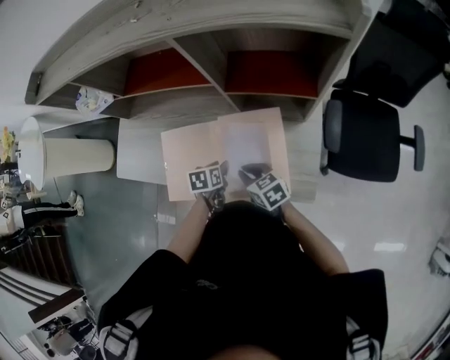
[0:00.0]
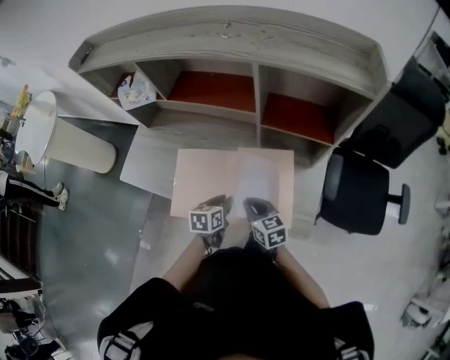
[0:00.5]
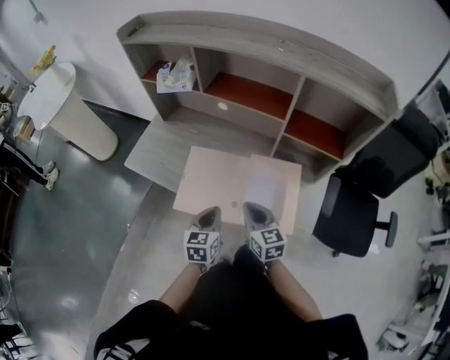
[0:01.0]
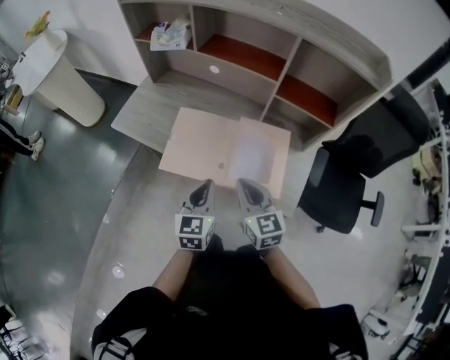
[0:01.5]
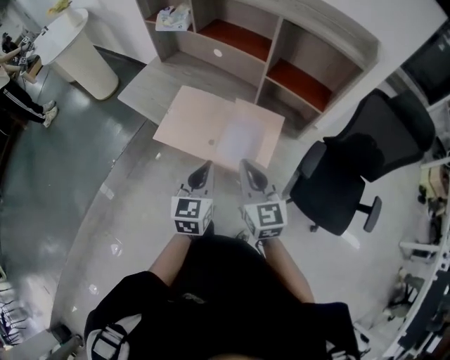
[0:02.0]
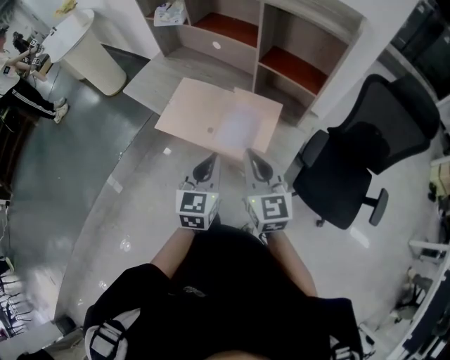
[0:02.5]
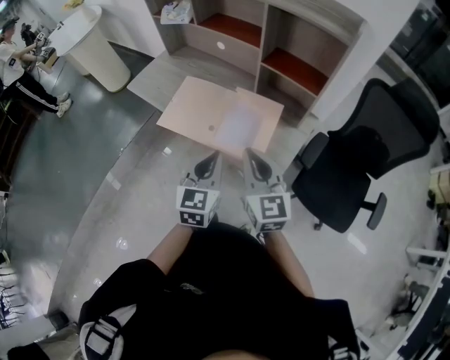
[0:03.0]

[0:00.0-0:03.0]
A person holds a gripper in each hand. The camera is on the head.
0:00.0 to 0:01.5: Both grippers travel together upward and backward, some 20 cm. The left gripper angles its fingers upward, by approximately 40 degrees, and closes its fingers. The right gripper rotates about 30 degrees.
0:01.5 to 0:03.0: Both grippers travel together to the right, backward and upward, approximately 15 cm.

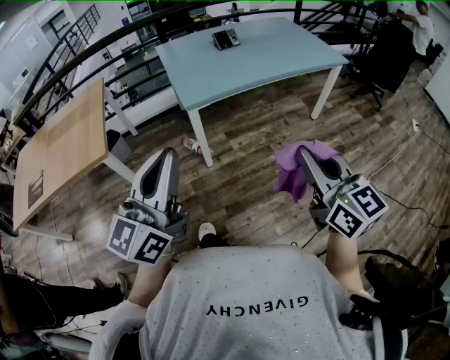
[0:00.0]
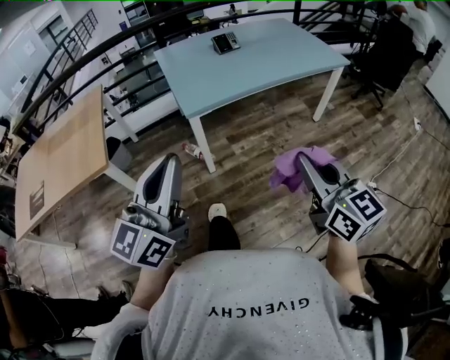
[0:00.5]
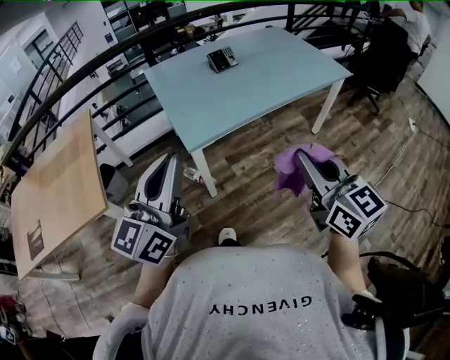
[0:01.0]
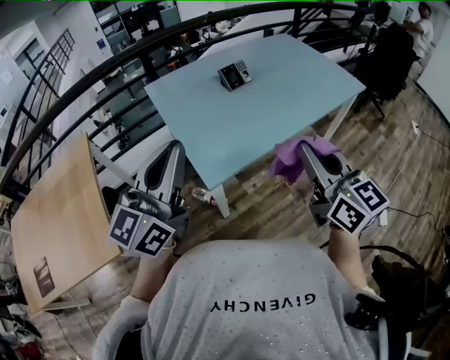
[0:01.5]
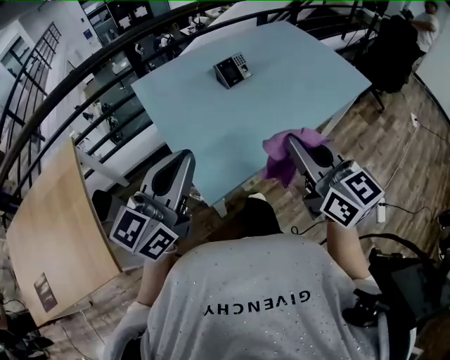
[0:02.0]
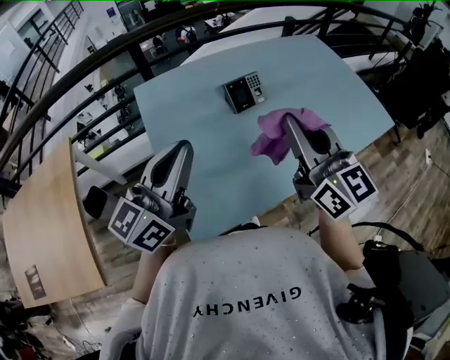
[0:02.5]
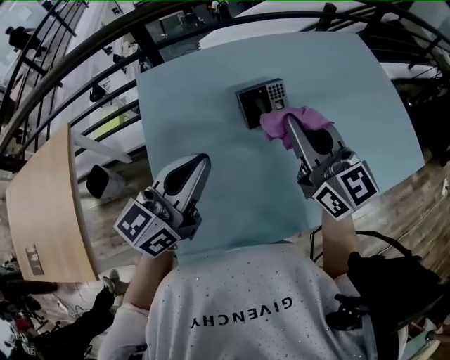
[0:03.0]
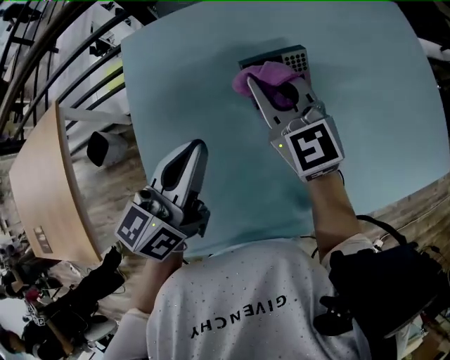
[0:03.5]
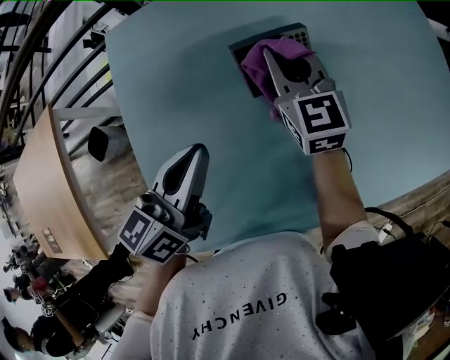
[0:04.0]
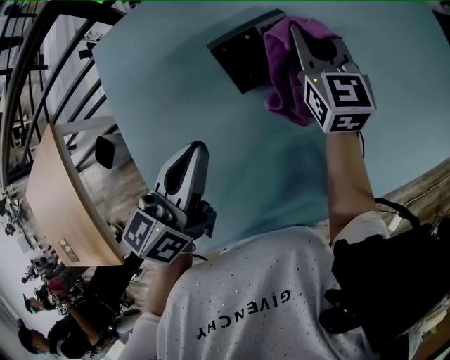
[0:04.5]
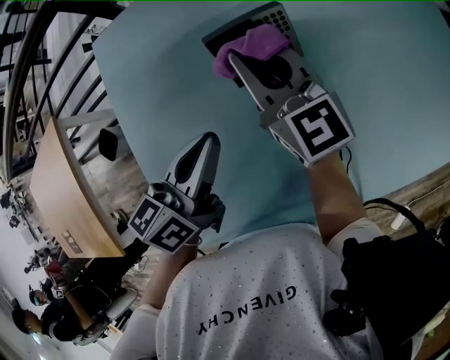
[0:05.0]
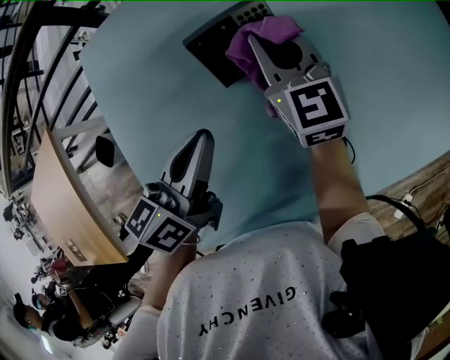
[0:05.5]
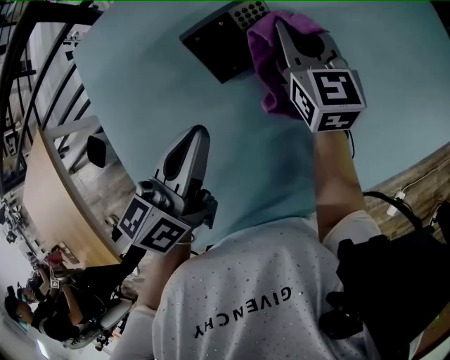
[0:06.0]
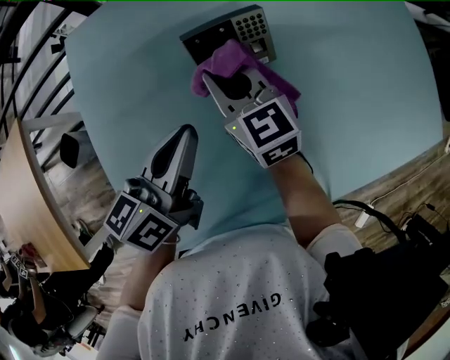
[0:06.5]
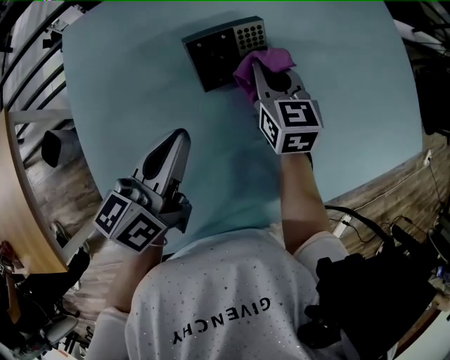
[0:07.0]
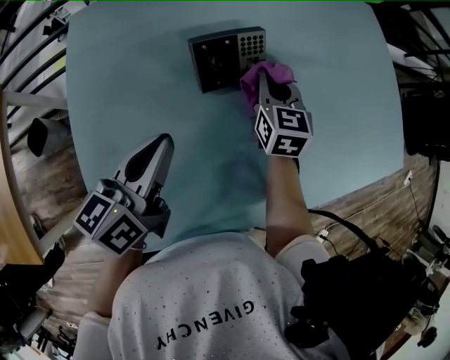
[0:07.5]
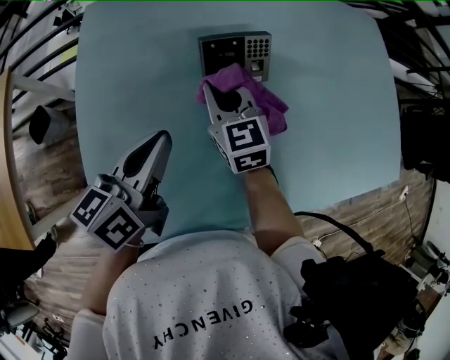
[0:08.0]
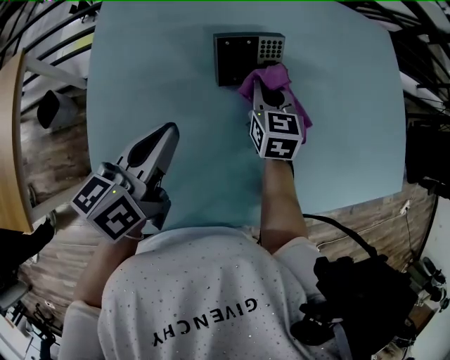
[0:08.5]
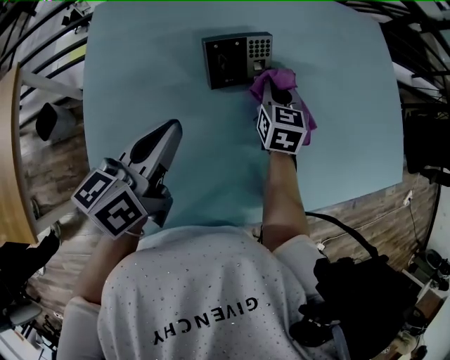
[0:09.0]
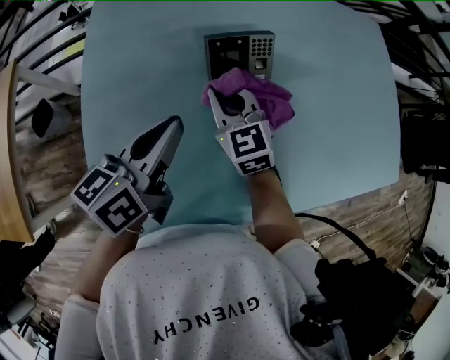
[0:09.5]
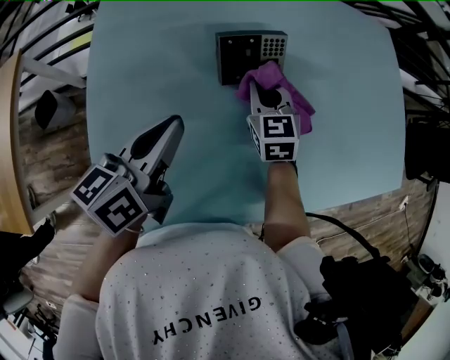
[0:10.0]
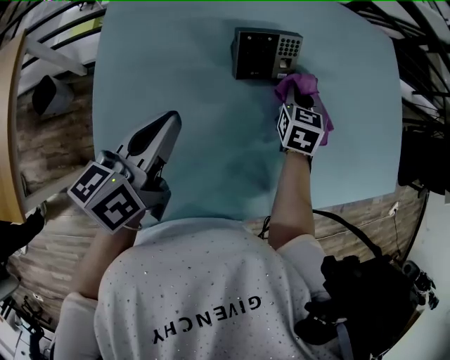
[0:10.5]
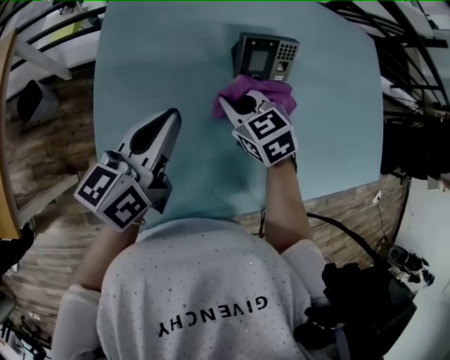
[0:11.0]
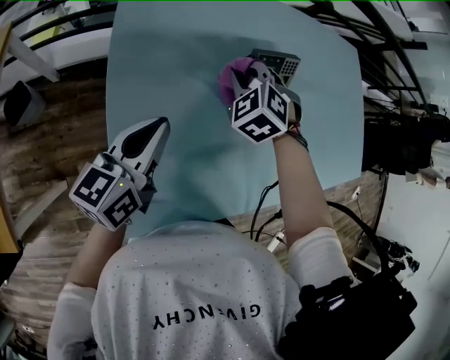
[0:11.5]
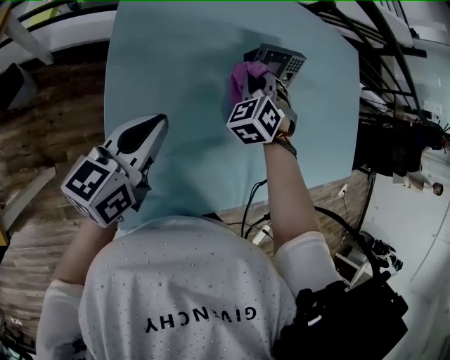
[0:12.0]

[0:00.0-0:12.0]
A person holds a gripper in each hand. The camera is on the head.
0:00.0 to 0:02.0: The two grippers travel together, forward, roughly 50 cm.
0:02.0 to 0:04.0: Both grippers are carried forward, roughly 50 cm. Both grippers travel together downward, approximately 25 cm. The left gripper turns by roughly 40 degrees.
0:04.0 to 0:06.0: The right gripper goes left and right, approximately 10 cm each way, reversing 2 times; the left gripper moves to the right, roughly 5 cm.
0:06.0 to 0:08.0: The right gripper swings left and right, about 15 cm each way, with 2 reversals, and rotates roughly 30 degrees. The left gripper moves about 5 cm.
0:08.0 to 0:10.0: The right gripper moves left and right over approximately 15 cm, changing direction 2 times.
0:10.0 to 0:12.0: The left gripper moves some 15 cm, while the right gripper changes place by about 10 cm, and twists approximately 50 degrees counterclockwise, seen from behind.

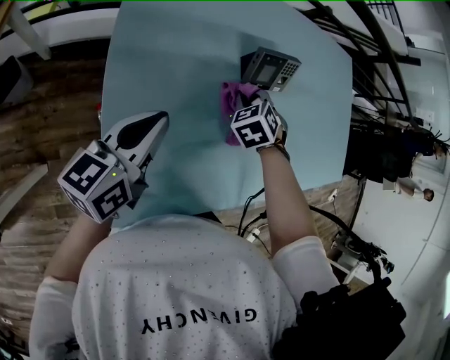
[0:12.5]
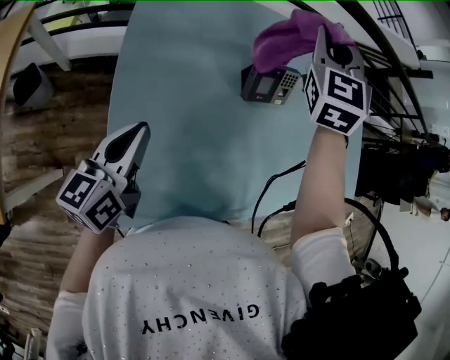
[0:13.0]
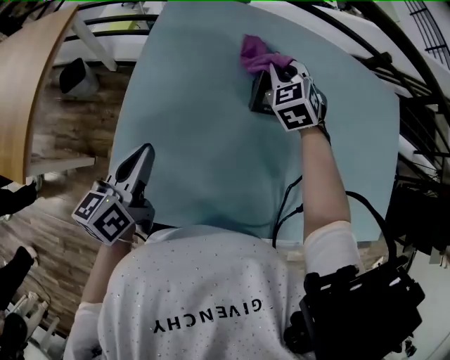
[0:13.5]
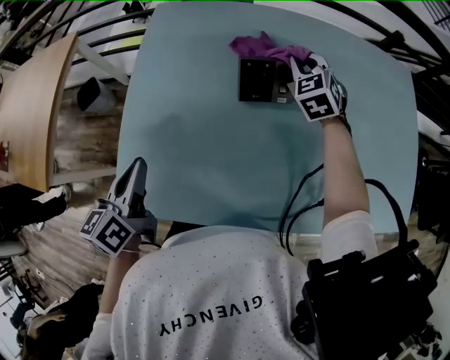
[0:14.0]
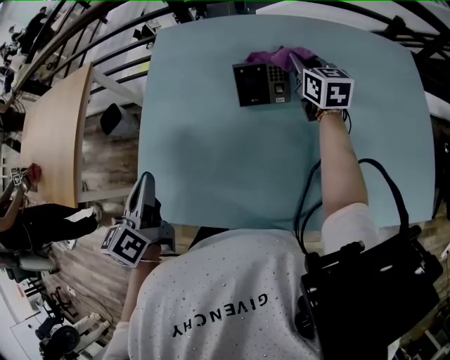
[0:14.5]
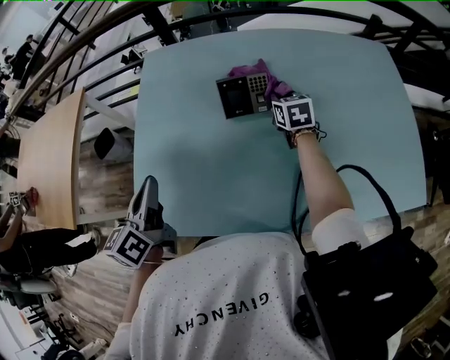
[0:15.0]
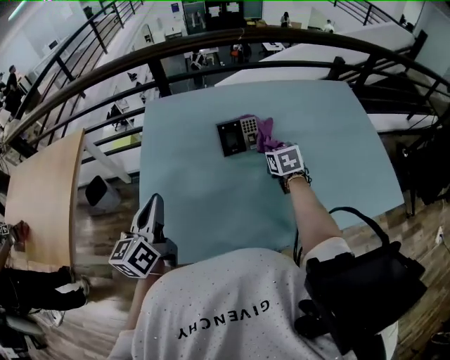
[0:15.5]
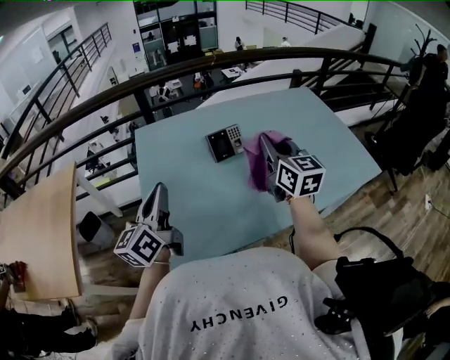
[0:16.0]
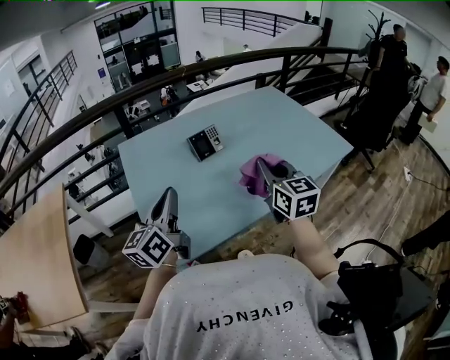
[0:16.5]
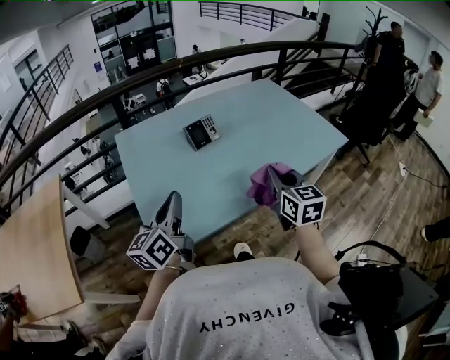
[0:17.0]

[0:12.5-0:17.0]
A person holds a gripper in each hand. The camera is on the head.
0:12.5 to 0:14.5: The right gripper ends up roughly 30 cm from where it was, and tips its fingers upward by approximately 40 degrees, while the left gripper moves roughly 20 cm, and swivels about 40 degrees.
0:14.5 to 0:17.0: The left gripper shifts by some 15 cm, and rotates approximately 40 degrees. Meanwhile the right gripper goes up and down, roughly 25 cm each way, reversing 2 times, and rotates approximately 30 degrees.

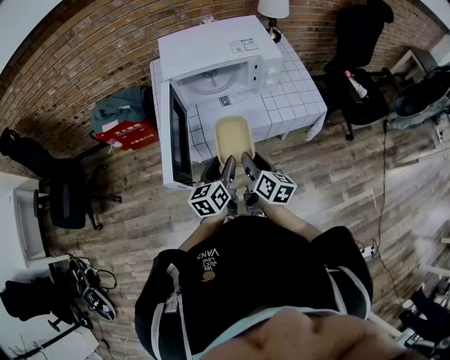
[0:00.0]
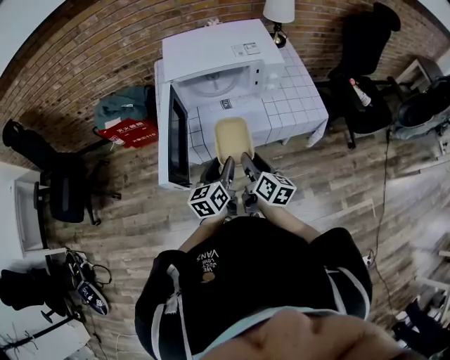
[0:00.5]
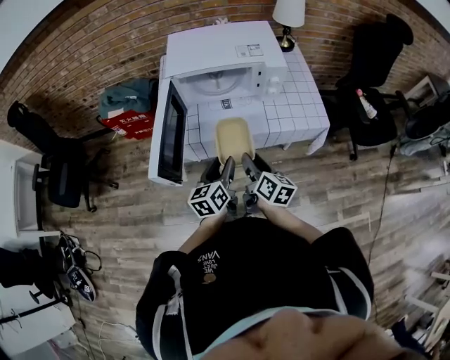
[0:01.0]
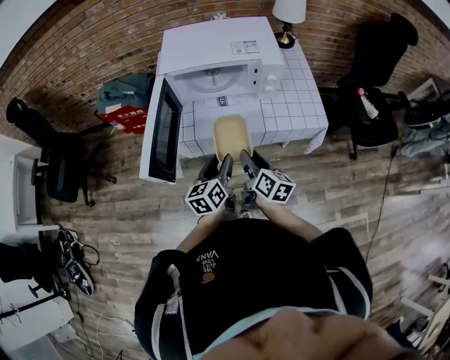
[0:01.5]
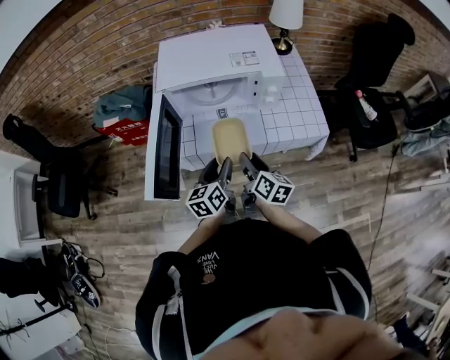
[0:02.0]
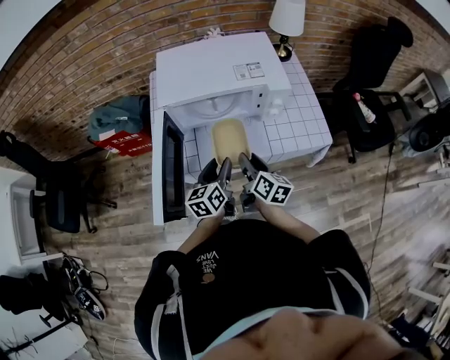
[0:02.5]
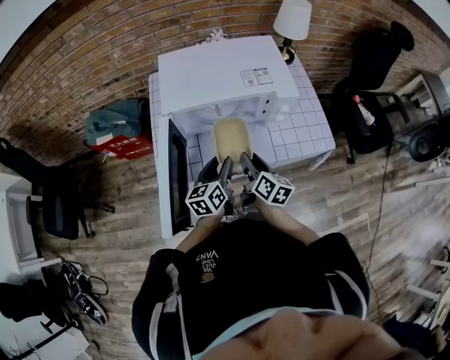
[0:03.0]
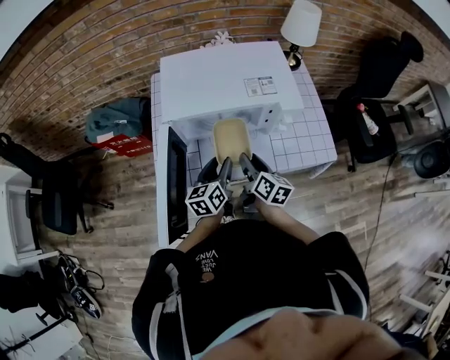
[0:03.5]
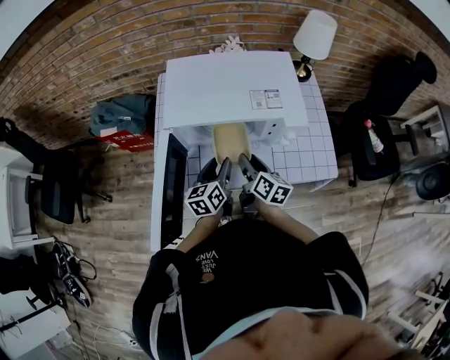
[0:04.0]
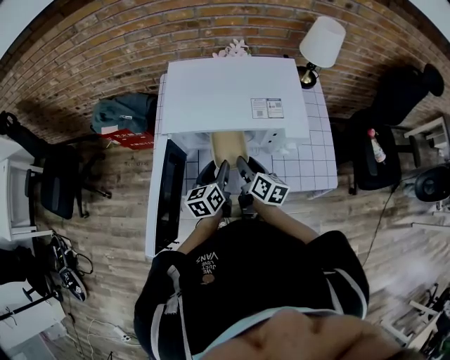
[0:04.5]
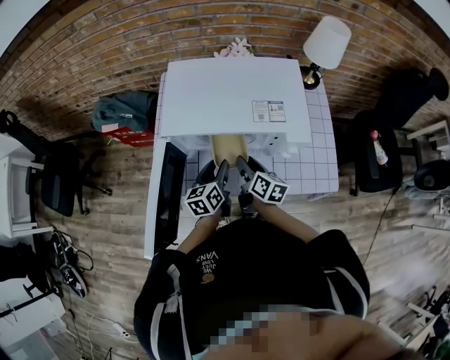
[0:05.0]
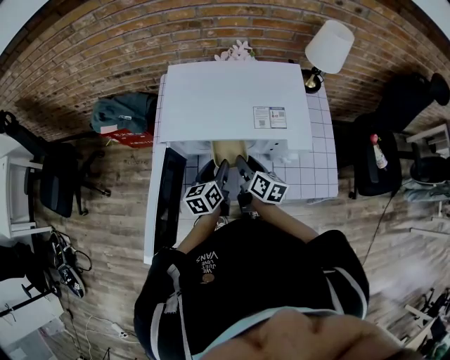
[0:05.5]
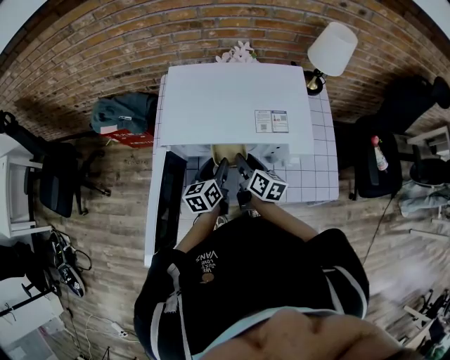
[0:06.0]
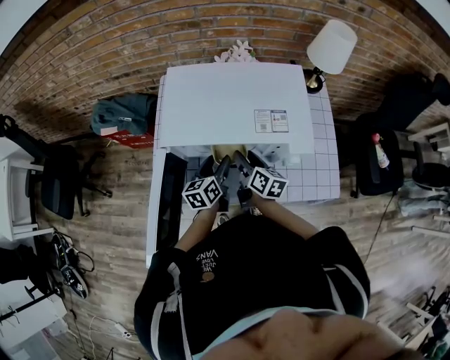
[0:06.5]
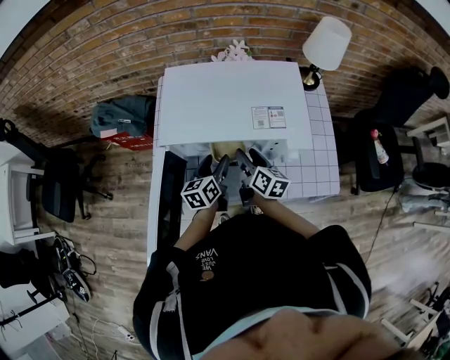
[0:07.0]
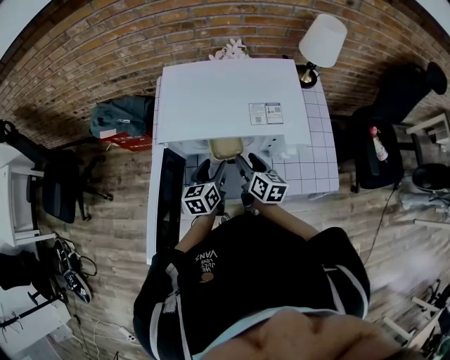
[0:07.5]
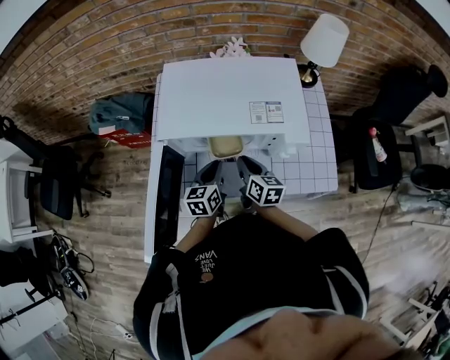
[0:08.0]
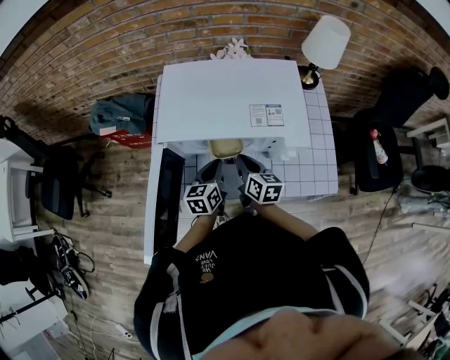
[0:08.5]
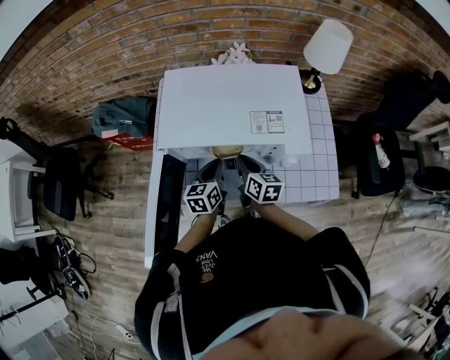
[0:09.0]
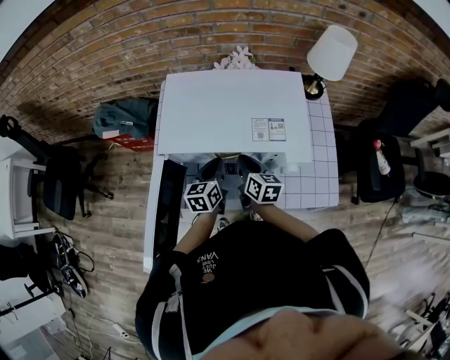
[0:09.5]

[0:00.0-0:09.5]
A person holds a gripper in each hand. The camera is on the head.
0:00.0 to 0:02.0: Both grippers move forward, about 5 cm.
0:02.0 to 0:04.0: Both grippers travel together forward, approximately 15 cm.
0:04.0 to 0:05.5: The two grippers go roughly 5 cm forward.
0:05.5 to 0:07.5: The grippers make only small movements.
0:07.5 to 0:09.5: The right gripper closes. The left gripper closes up.
